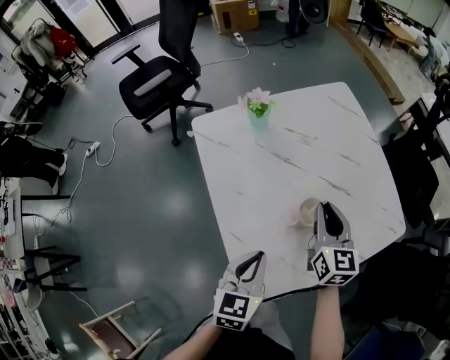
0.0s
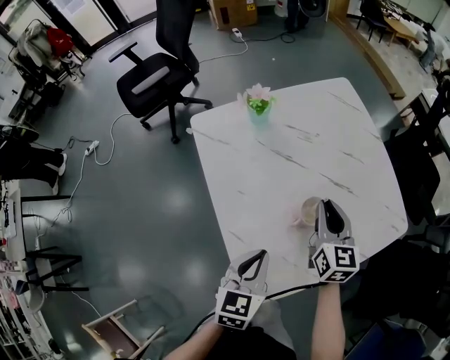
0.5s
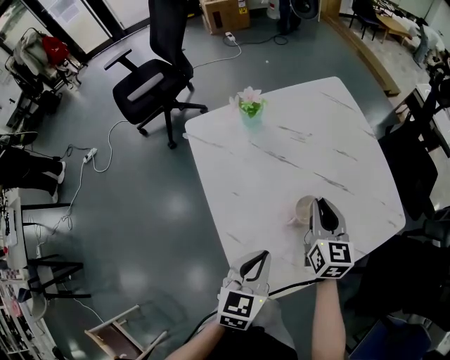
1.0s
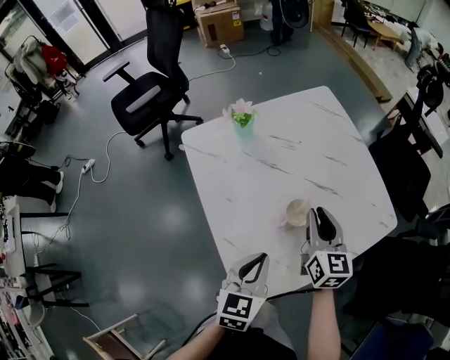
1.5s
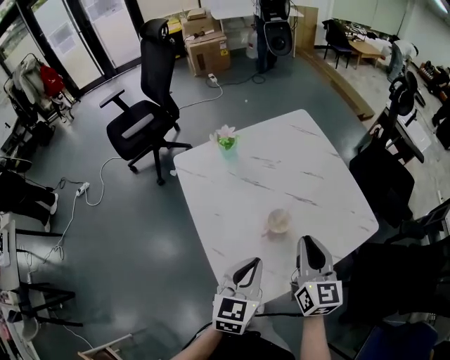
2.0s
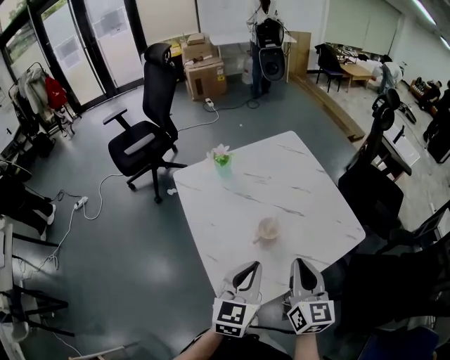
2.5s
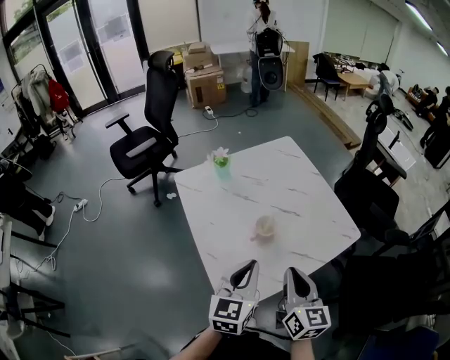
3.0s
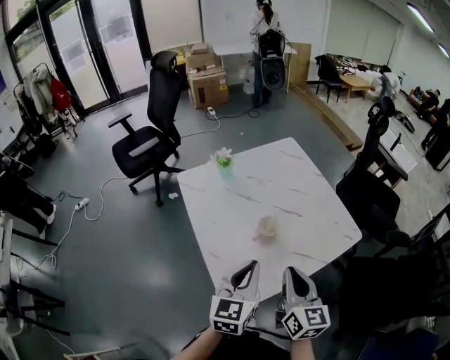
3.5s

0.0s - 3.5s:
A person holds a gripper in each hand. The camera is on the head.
0.0s - 2.0s: The right gripper shifts roughly 10 cm backward and upward, while the left gripper is displaced upward by roughly 5 cm.
2.0s - 3.5s: The left gripper goes roughly 5 cm upward. The right gripper heads backward, covering about 10 cm.

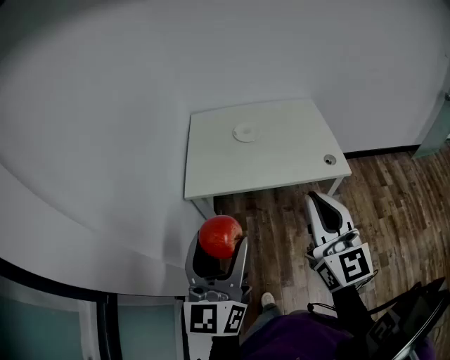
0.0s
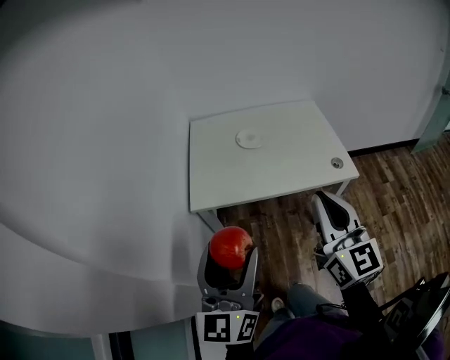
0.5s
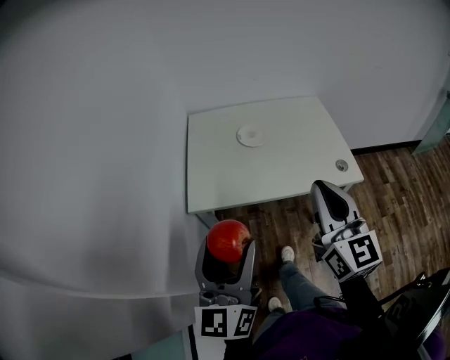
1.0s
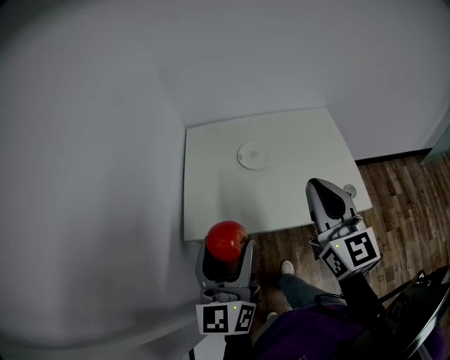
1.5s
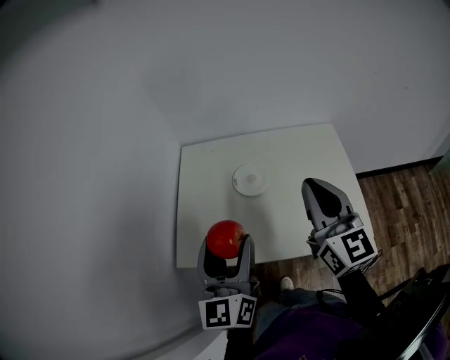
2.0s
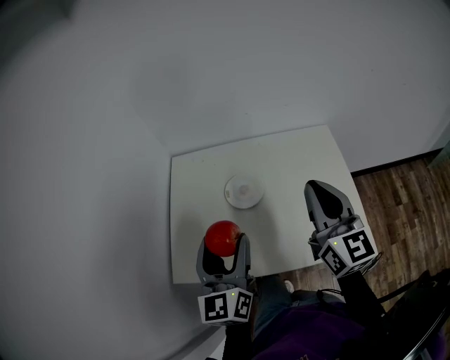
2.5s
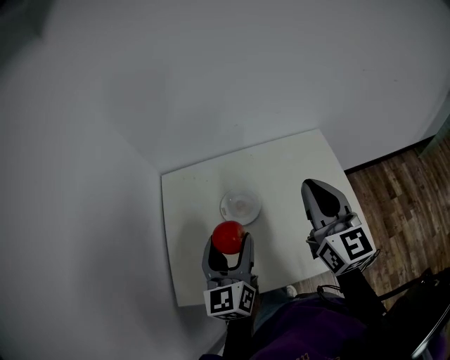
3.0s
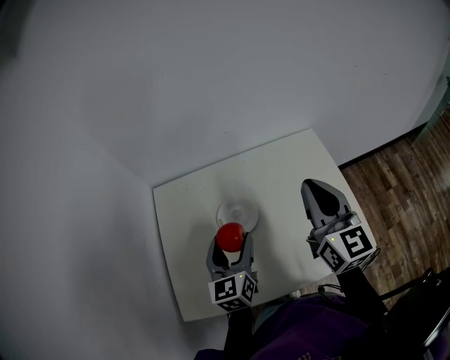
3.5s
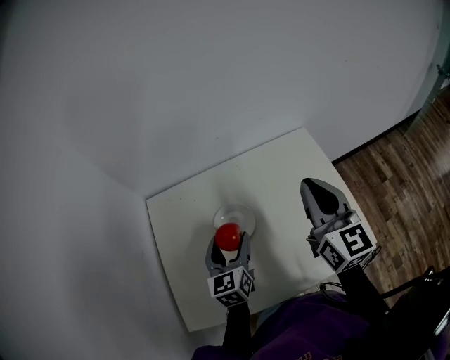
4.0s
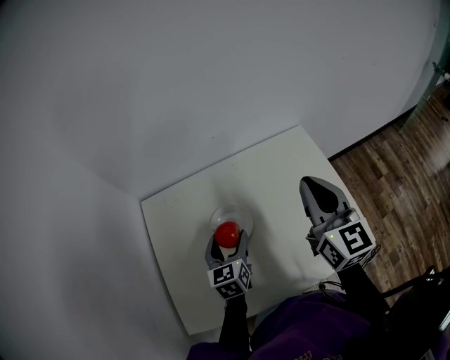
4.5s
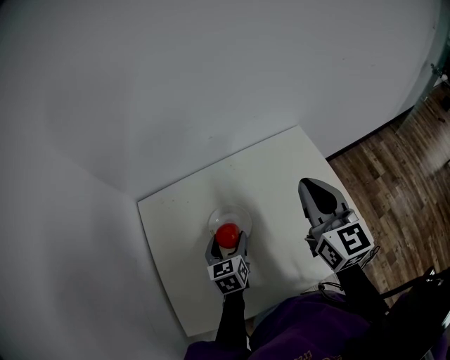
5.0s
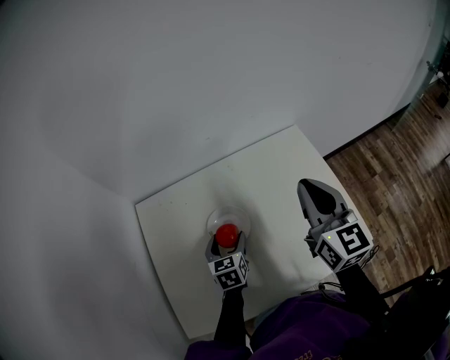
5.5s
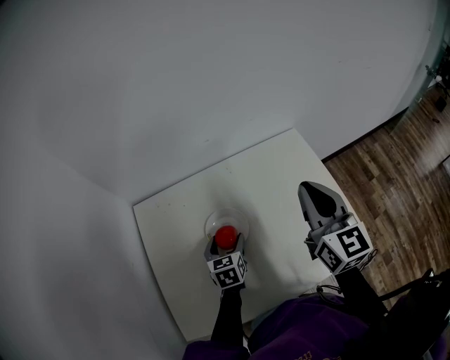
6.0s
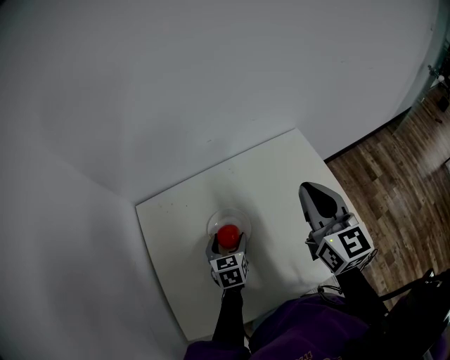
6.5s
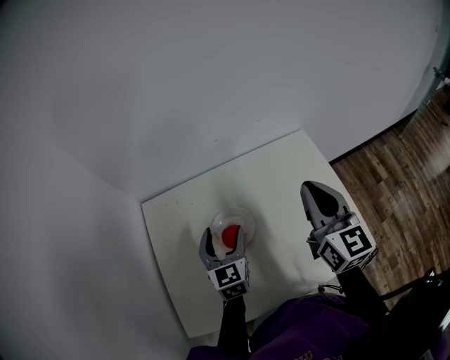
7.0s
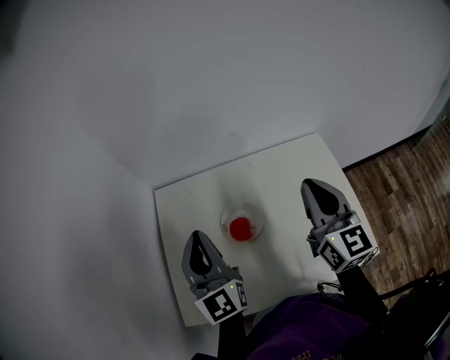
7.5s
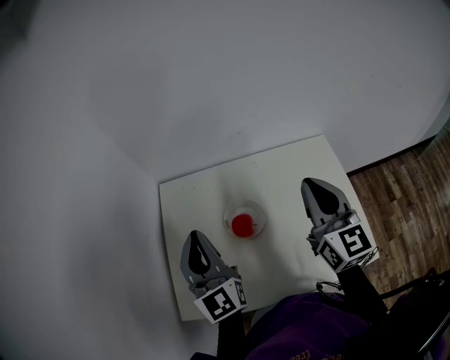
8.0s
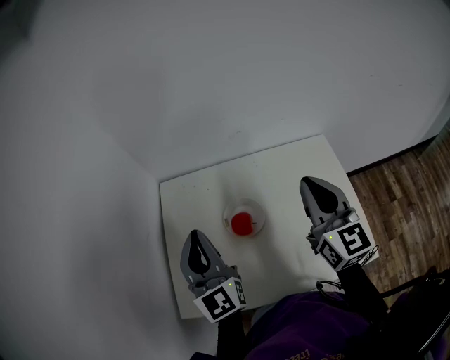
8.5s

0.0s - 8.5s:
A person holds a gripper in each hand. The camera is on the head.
0.0s - 2.0s: Both grippers travel together forward, some 35 cm.
2.0s - 4.0s: The left gripper shifts some 30 cm forward and downward, and rotates about 30 degrees; the right gripper travels forward and to the right by approximately 15 cm.
4.0s - 6.5s: The left gripper shifts about 10 cm downward, and changes its angle by some 20 degrees.
6.5s - 8.5s: The right gripper moves about 5 cm; the left gripper travels upward by about 25 cm, tips its fingers upward by some 40 degrees, and closes its fingers.

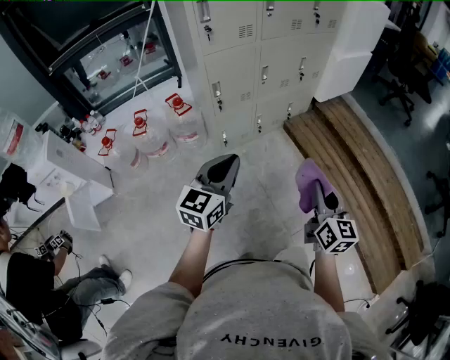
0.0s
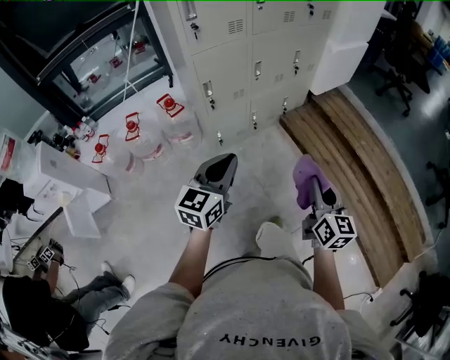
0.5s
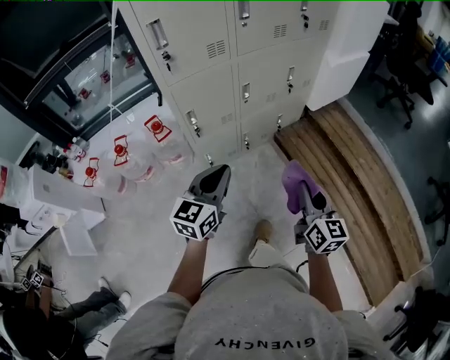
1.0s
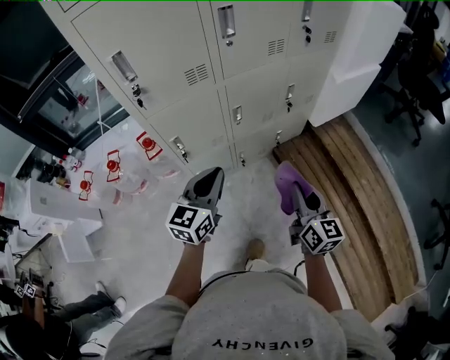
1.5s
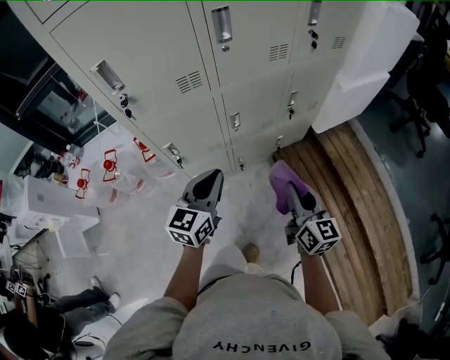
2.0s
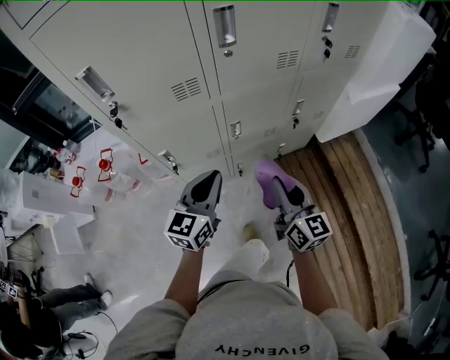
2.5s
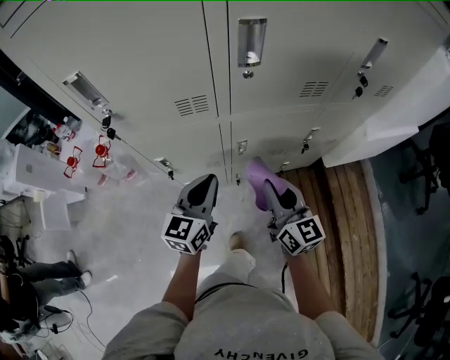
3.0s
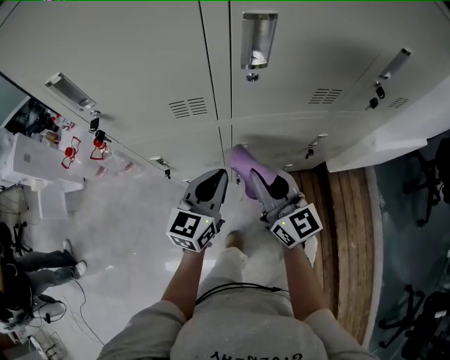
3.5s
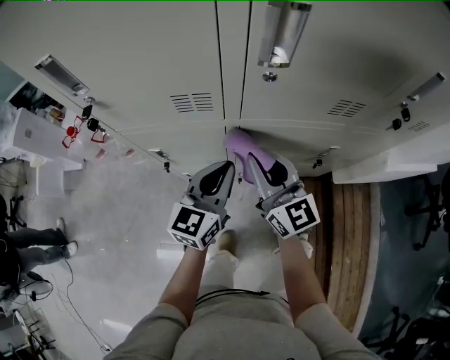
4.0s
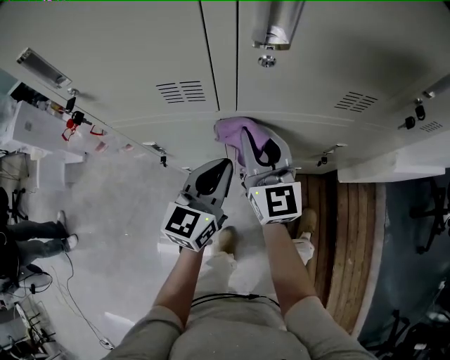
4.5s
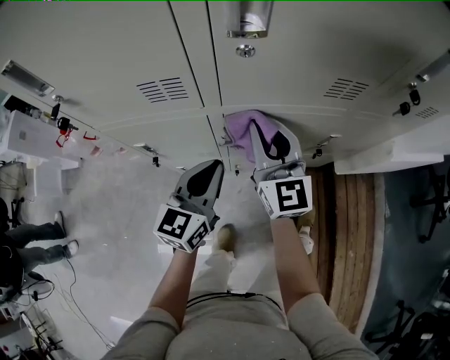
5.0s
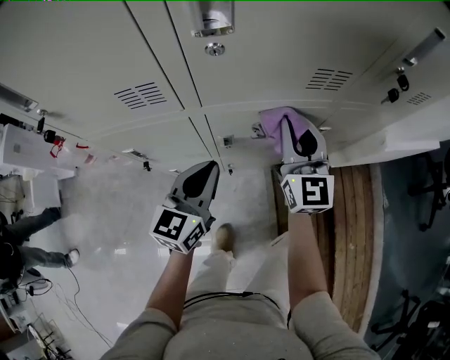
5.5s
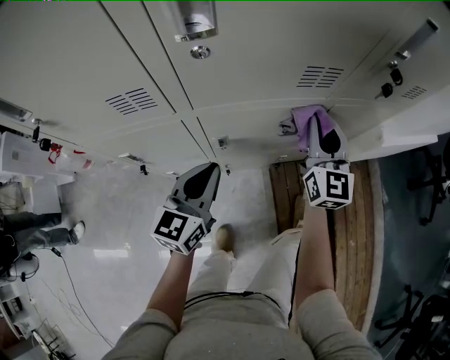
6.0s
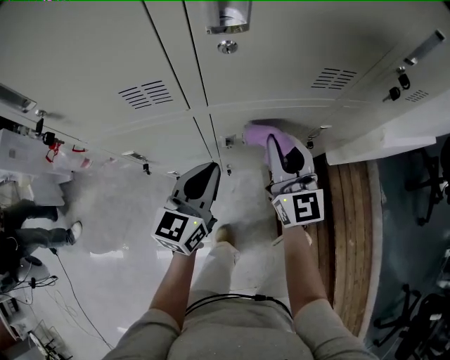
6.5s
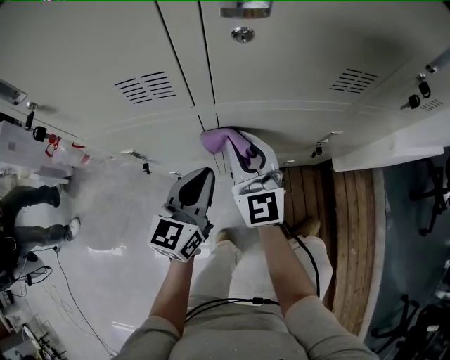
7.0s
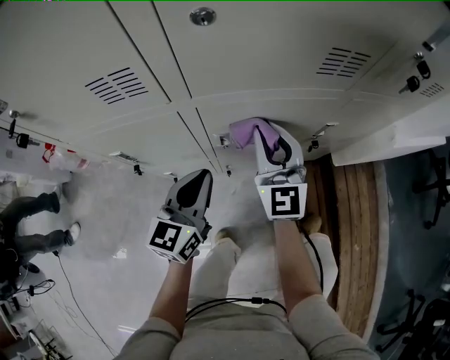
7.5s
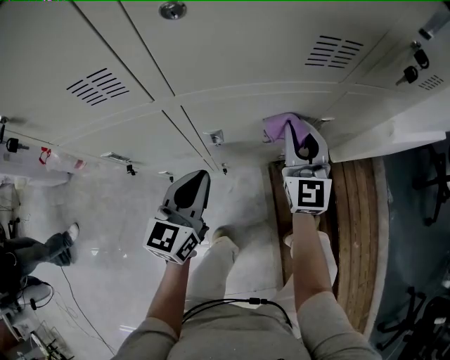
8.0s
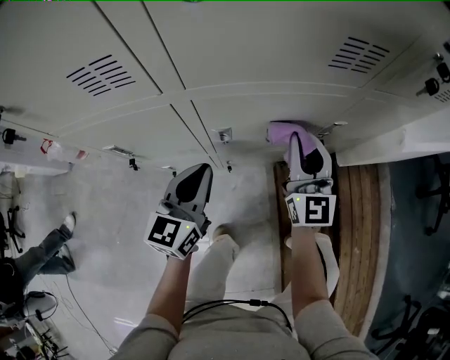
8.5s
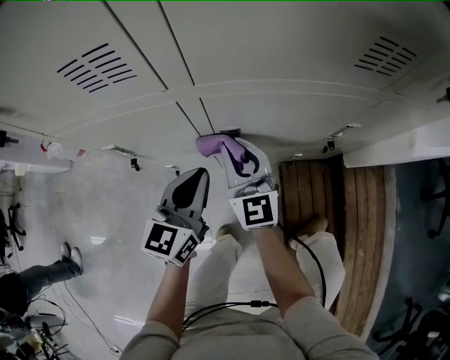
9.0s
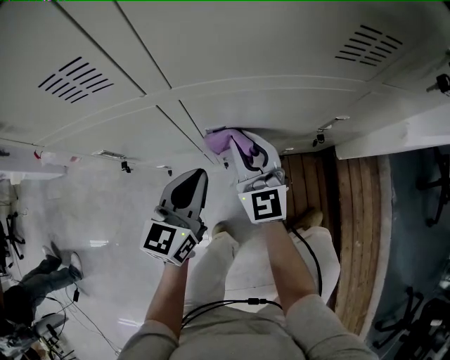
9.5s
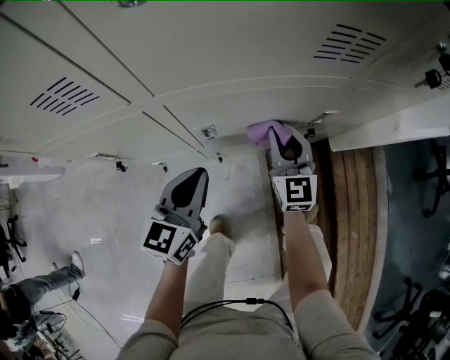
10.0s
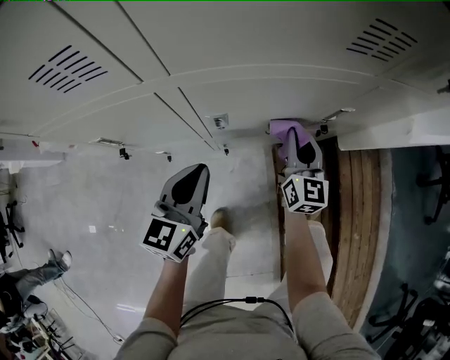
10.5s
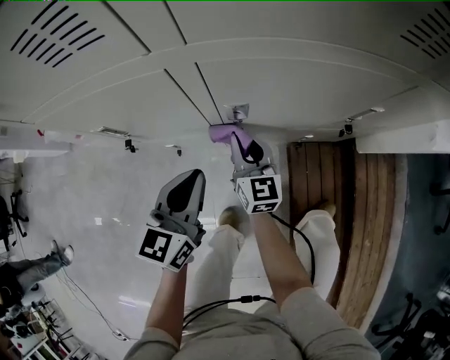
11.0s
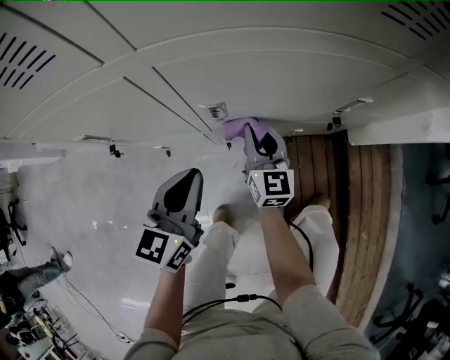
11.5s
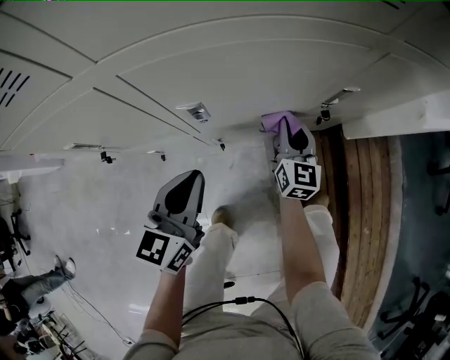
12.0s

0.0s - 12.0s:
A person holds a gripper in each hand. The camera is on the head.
0.0s - 2.0s: Both grippers are carried forward, approximately 40 cm.
2.0s - 4.0s: The left gripper moves roughly 20 cm. Meanwhile the right gripper shifts by about 30 cm, and swivels approximately 40 degrees.
4.0s - 6.0s: The left gripper ends up about 5 cm from where it was. The right gripper shifts roughly 20 cm to the right, and swivels about 40 degrees.
6.0s - 8.0s: Both grippers travel together downward, roughly 10 cm. The right gripper moves some 25 cm to the left and comes back.
8.0s - 10.0s: The right gripper is displaced downward by approximately 10 cm, and reaches about 20 cm to the left, then returns.
10.0s - 12.0s: The right gripper is displaced downward by about 15 cm, goes to the left and returns, about 15 cm each way, and turns by some 20 degrees, while the left gripper shifts roughly 5 cm downward.

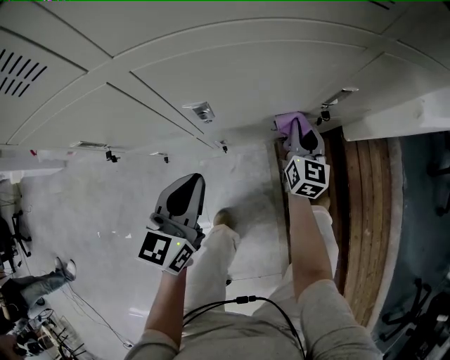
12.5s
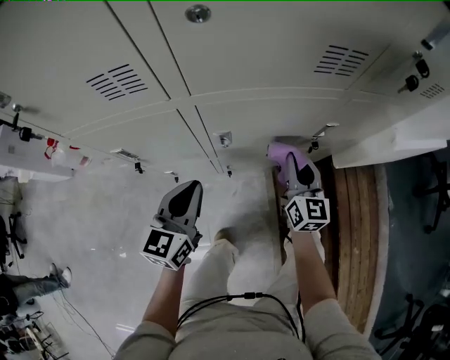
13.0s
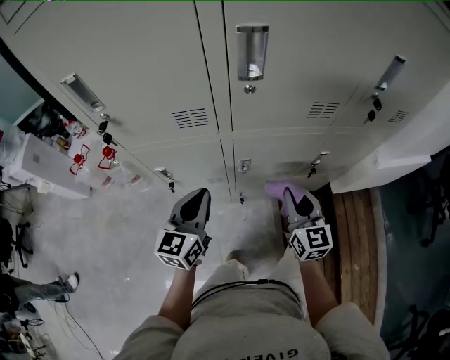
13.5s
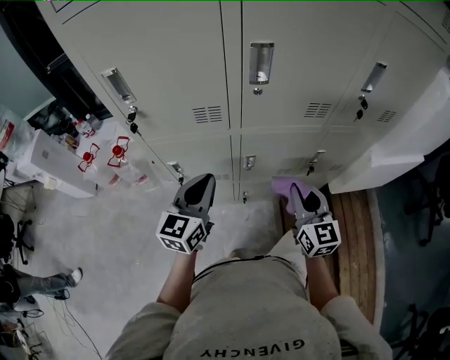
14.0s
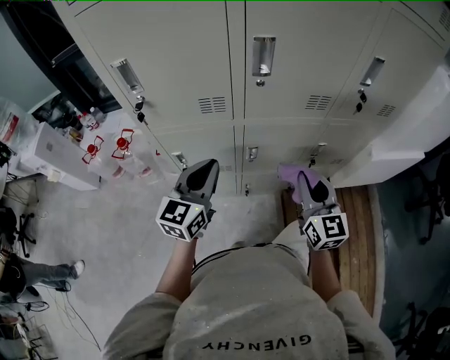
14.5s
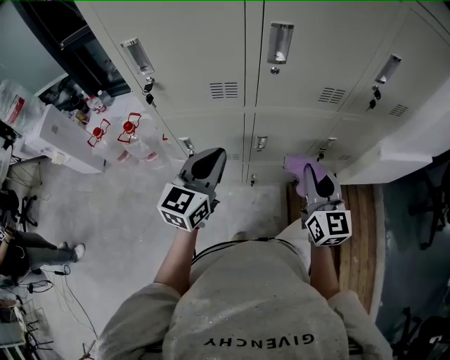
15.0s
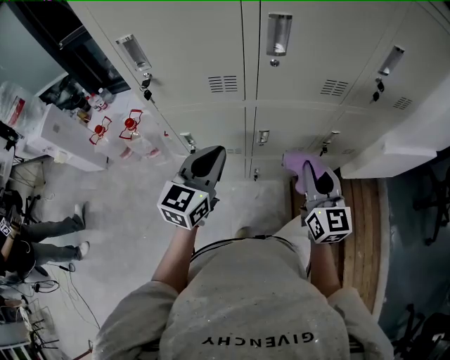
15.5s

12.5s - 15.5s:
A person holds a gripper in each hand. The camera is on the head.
12.5s - 14.0s: The left gripper shifts roughly 25 cm upward; the right gripper is displaced upward and backward by approximately 40 cm, and turns by some 20 degrees.
14.0s - 15.5s: The grippers stay close to where they were, moving slightly.
